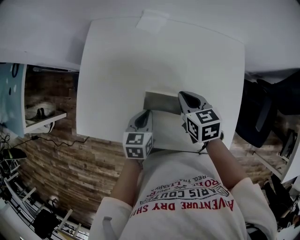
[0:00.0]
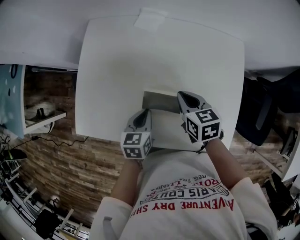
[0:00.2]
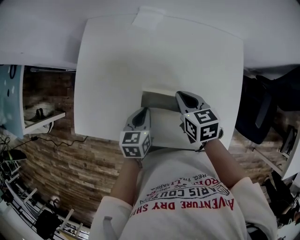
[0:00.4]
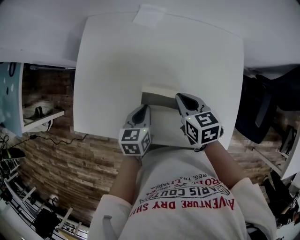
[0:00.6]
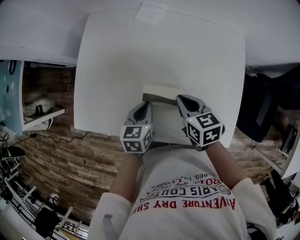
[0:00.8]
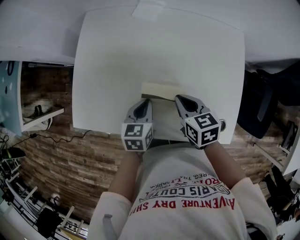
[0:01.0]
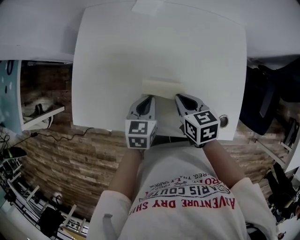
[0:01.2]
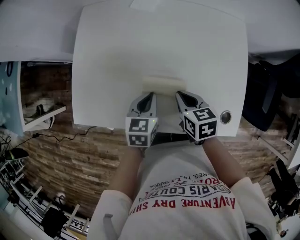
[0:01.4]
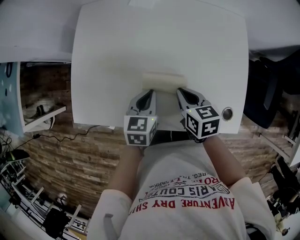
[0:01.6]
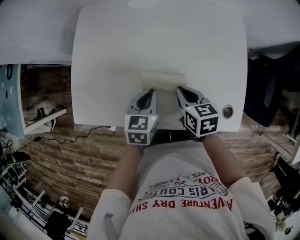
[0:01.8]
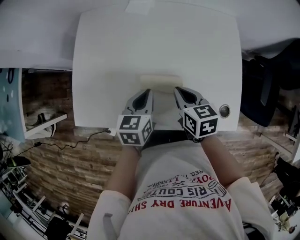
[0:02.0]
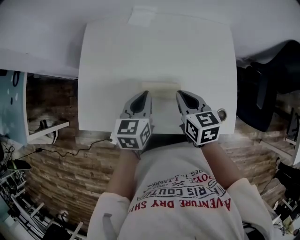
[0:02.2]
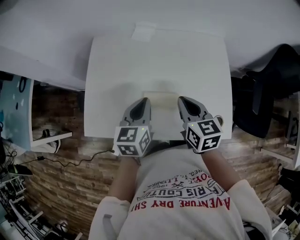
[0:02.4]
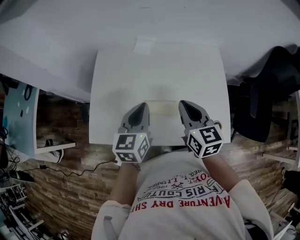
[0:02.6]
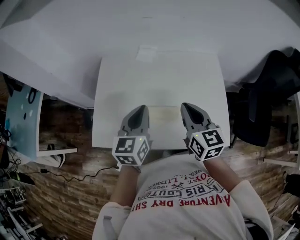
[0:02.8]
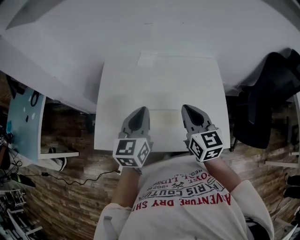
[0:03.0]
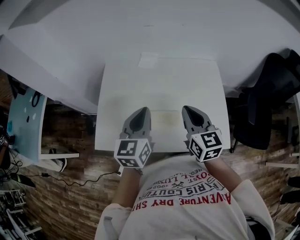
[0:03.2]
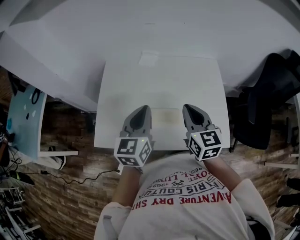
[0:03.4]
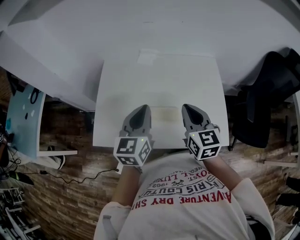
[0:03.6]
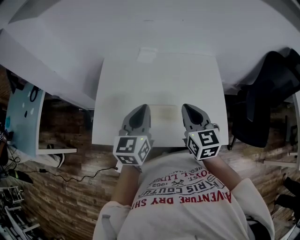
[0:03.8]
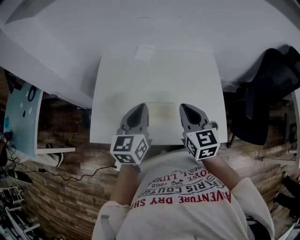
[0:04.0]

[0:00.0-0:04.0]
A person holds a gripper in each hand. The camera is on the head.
0.0 to 1.4 s: The right gripper heads backward, covering some 10 cm.
1.4 to 2.6 s: Both grippers move upward, about 20 cm. The right gripper rotates about 30 degrees; the left gripper changes its angle by approximately 20 degrees.
2.6 to 4.0 s: The left gripper moves roughly 5 cm.

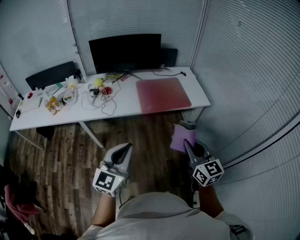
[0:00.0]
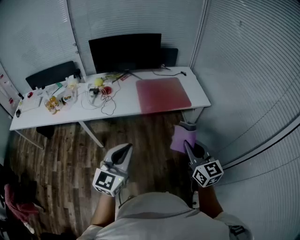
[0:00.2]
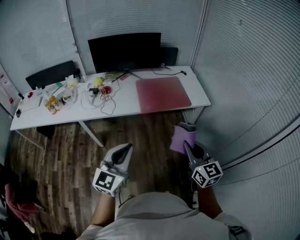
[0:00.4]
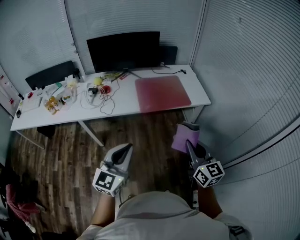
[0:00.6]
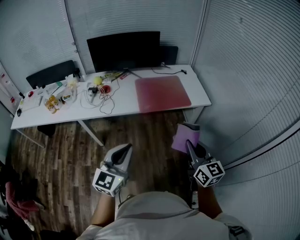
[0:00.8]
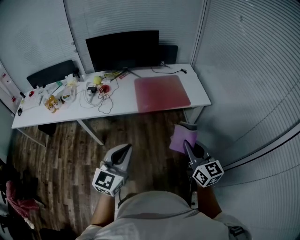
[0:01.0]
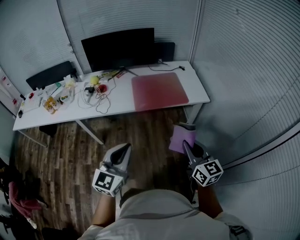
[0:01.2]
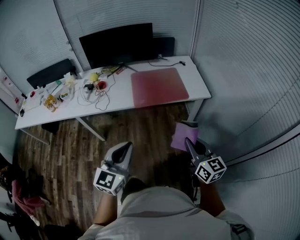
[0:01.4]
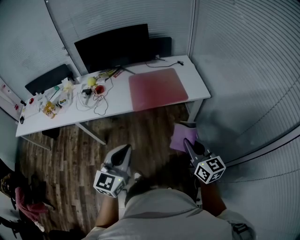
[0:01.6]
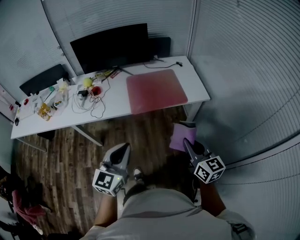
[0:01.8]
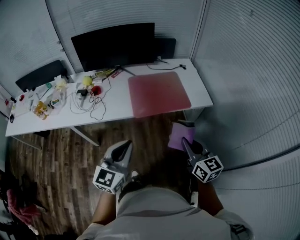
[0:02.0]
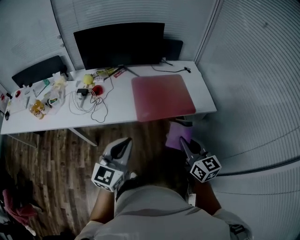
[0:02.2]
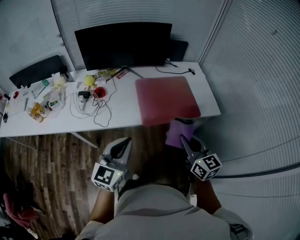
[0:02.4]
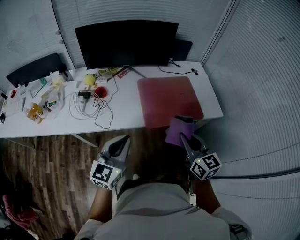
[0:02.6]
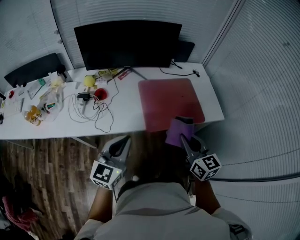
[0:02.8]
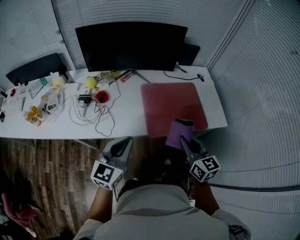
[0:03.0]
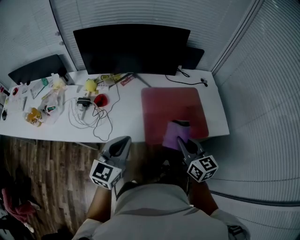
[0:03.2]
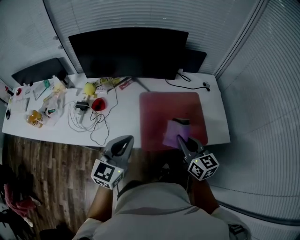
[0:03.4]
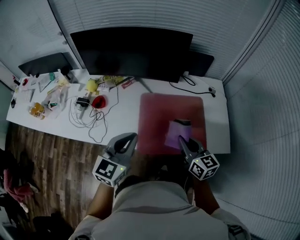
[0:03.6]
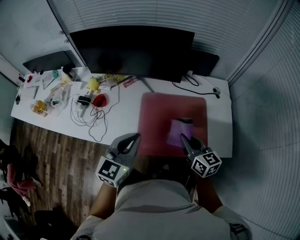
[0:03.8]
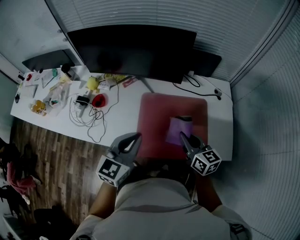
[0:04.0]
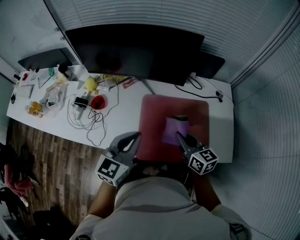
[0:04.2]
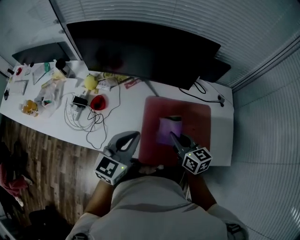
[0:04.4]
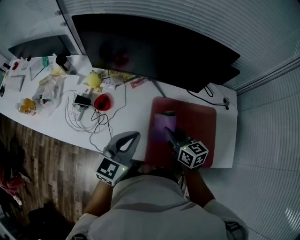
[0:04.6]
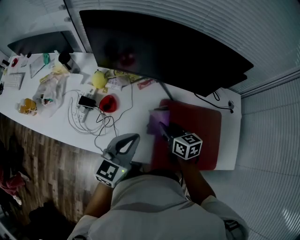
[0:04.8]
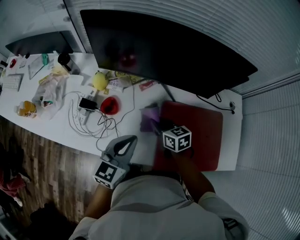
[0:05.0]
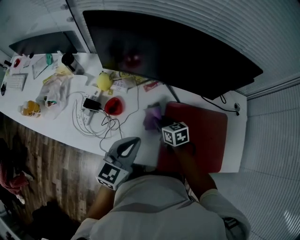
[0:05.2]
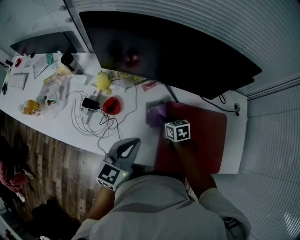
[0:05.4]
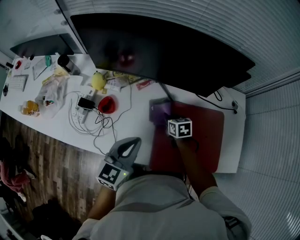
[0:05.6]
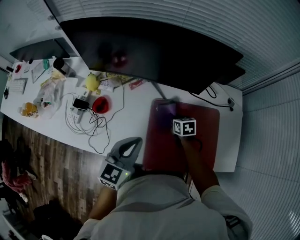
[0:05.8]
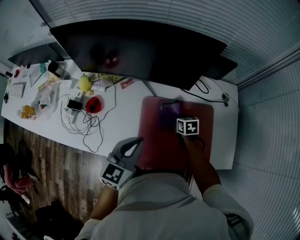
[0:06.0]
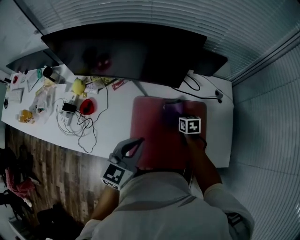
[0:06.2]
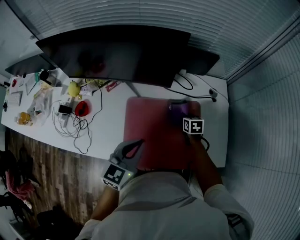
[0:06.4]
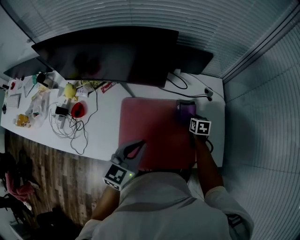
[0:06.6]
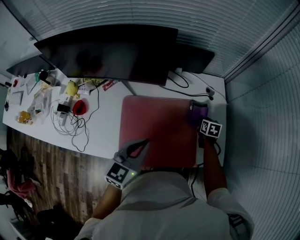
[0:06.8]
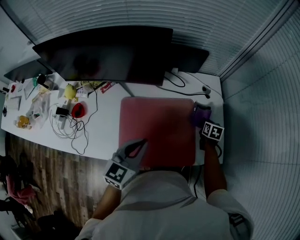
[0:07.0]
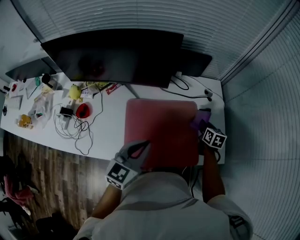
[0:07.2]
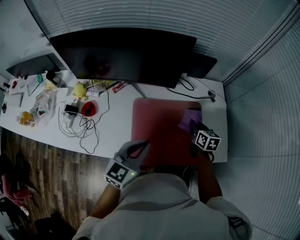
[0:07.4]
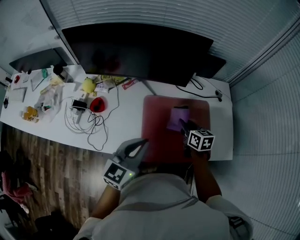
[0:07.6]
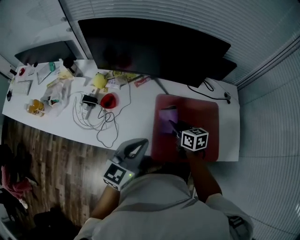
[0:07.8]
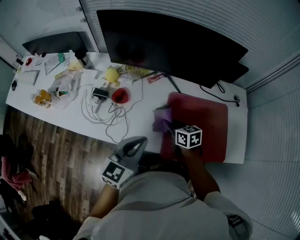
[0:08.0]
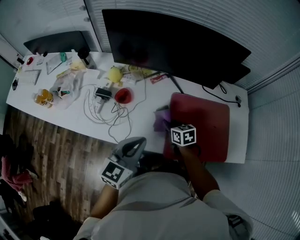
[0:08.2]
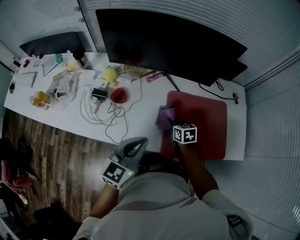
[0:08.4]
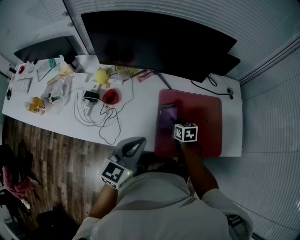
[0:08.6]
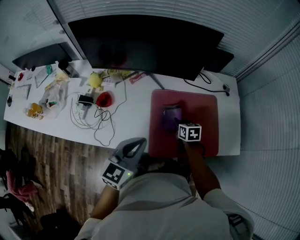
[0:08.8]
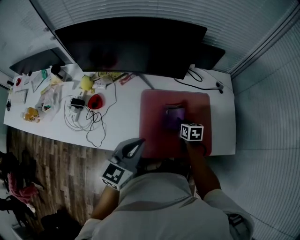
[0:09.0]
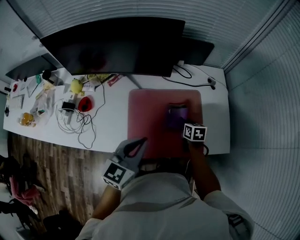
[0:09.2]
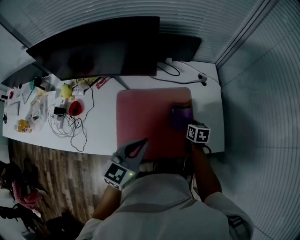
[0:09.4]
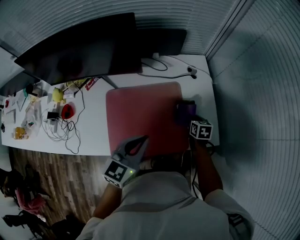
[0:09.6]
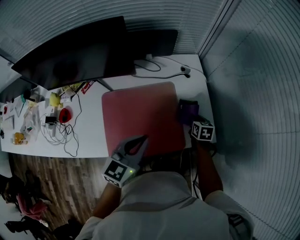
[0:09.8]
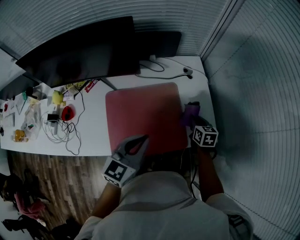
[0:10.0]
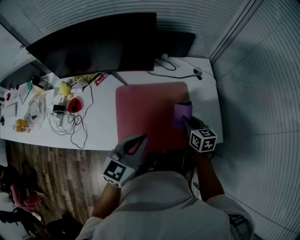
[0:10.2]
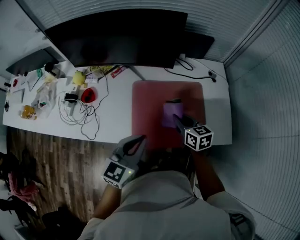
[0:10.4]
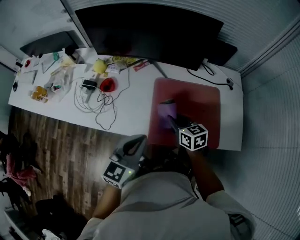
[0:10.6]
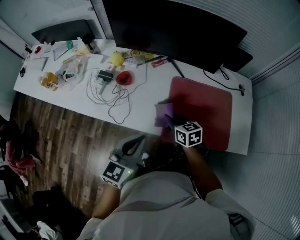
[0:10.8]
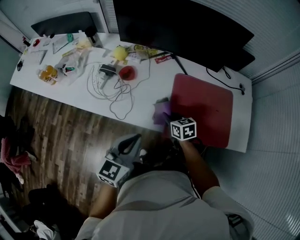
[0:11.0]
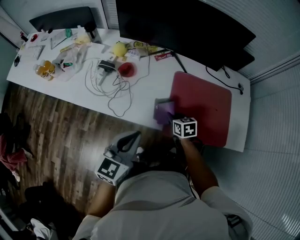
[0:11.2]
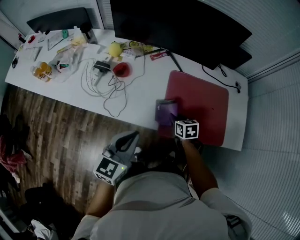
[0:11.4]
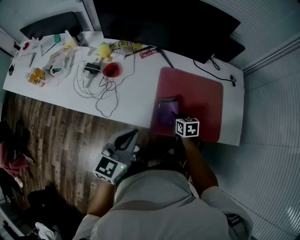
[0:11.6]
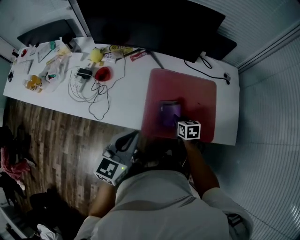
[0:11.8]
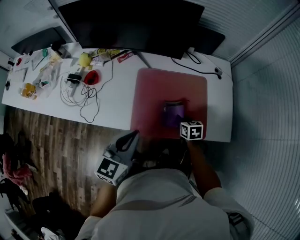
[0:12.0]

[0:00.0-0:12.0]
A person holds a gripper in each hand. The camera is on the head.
0.0 to 1.6 s: The right gripper shifts roughly 15 cm to the right, downward and forward. Meanwhile the left gripper goes roughly 10 cm to the right and forward.
1.6 to 3.0 s: The two grippers go approximately 35 cm forward and to the left.
3.0 to 4.4 s: The right gripper moves forward, approximately 25 cm, and changes its angle by some 20 degrees; the left gripper moves forward and to the right, approximately 25 cm.
4.4 to 6.0 s: The left gripper moves roughly 15 cm to the left and comes back; the right gripper goes roughly 25 cm downward and forward, reaches some 20 cm to the left, then returns, and swivels some 30 degrees.
6.0 to 7.6 s: The left gripper shifts some 5 cm backward, and travels to the right and back again, roughly 15 cm each way; the right gripper heads upward and backward, covering roughly 15 cm, and moves some 30 cm to the right and comes back.
7.6 to 9.0 s: The left gripper moves approximately 15 cm to the left and comes back. Meanwhile the right gripper heads downward, covering some 10 cm, and goes to the left and returns, about 25 cm each way.
9.0 to 10.4 s: The right gripper travels upward and backward by roughly 15 cm, and moves roughly 30 cm to the right and comes back. The left gripper moves approximately 20 cm to the right and comes back.
10.4 to 12.0 s: The right gripper shifts some 15 cm downward, and goes to the left and returns, some 25 cm each way. The left gripper travels to the left and back again, some 25 cm each way.

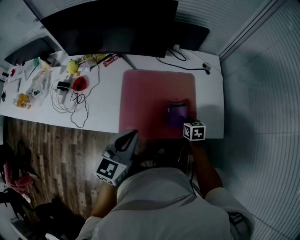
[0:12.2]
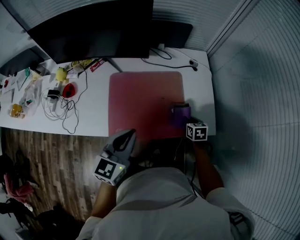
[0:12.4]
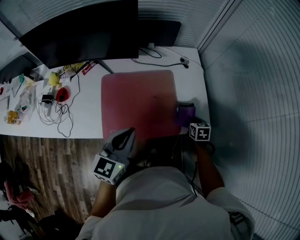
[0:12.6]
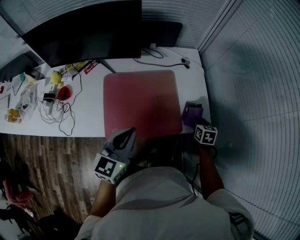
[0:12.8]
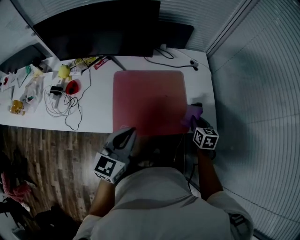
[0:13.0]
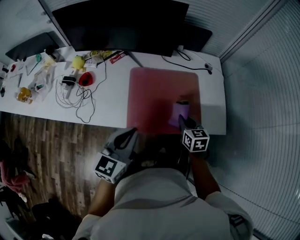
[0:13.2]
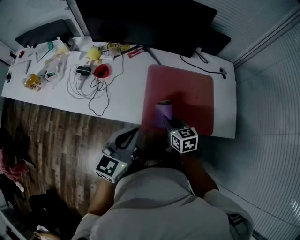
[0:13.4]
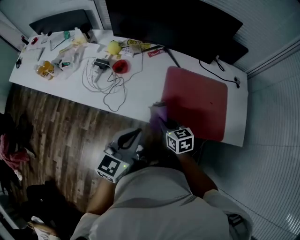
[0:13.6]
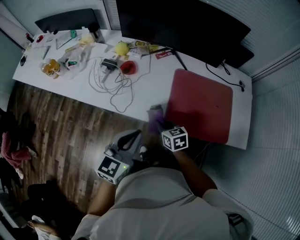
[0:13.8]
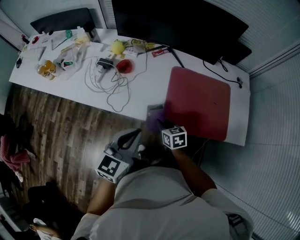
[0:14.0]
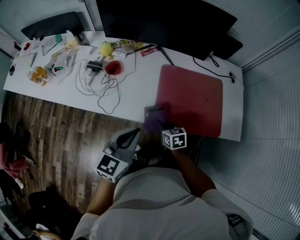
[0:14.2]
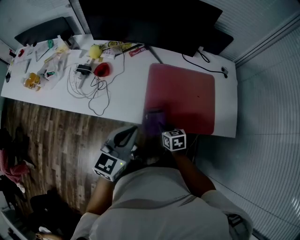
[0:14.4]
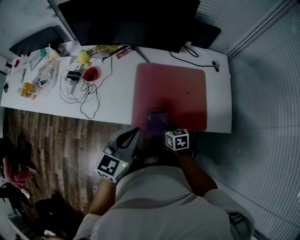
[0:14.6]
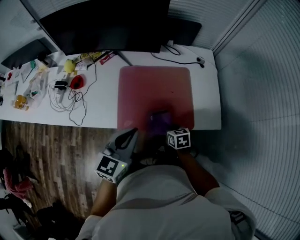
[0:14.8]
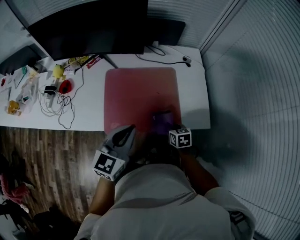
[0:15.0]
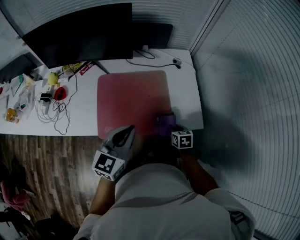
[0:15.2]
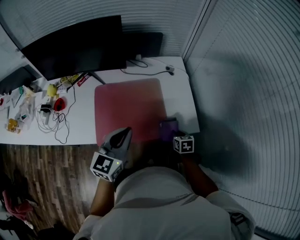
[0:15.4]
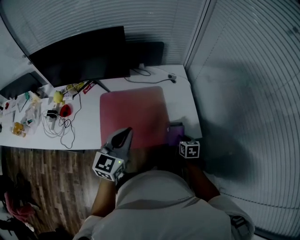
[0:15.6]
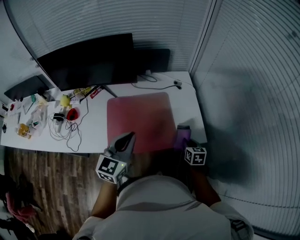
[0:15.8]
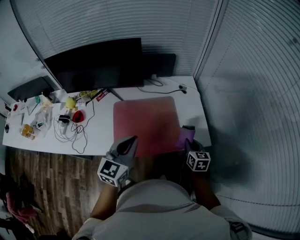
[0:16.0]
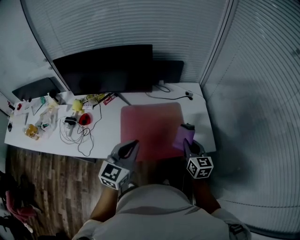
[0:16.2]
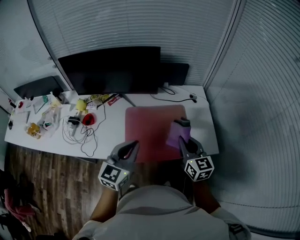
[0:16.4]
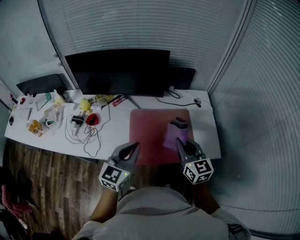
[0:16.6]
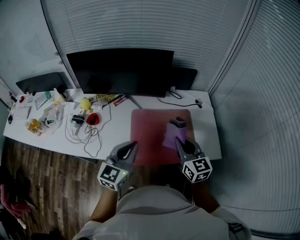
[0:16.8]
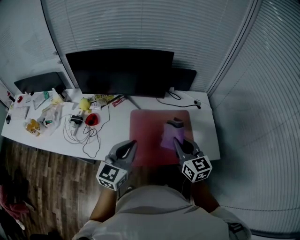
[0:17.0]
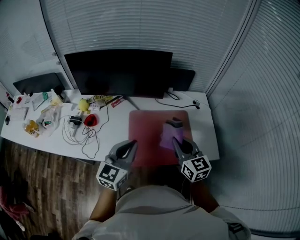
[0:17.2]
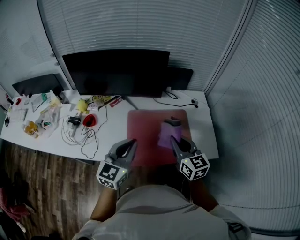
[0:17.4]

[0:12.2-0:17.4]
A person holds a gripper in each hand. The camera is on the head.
12.2 to 14.0 s: The left gripper changes place by about 25 cm, while the right gripper goes upward and returns, roughly 10 cm each way, and rotates approximately 20 degrees.
14.0 to 15.6 s: The right gripper changes place by roughly 50 cm, and swivels about 30 degrees. The left gripper moves roughly 35 cm.
15.6 to 17.4 s: The right gripper goes approximately 40 cm upward and to the left, and angles its fingers upward, by some 30 degrees. Meanwhile the left gripper shifts about 15 cm to the left.

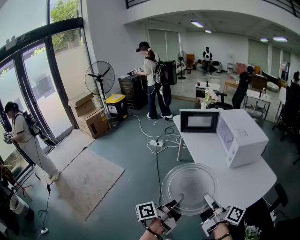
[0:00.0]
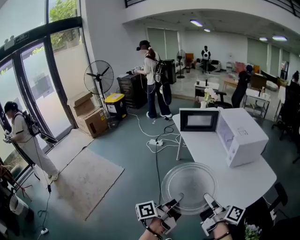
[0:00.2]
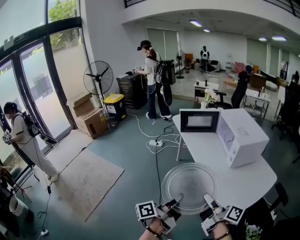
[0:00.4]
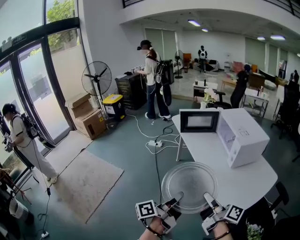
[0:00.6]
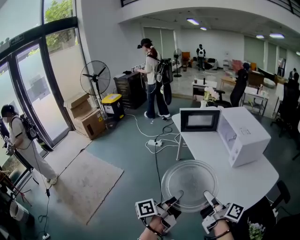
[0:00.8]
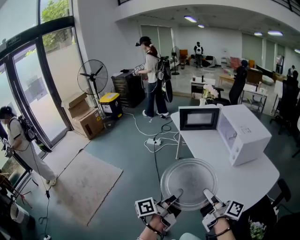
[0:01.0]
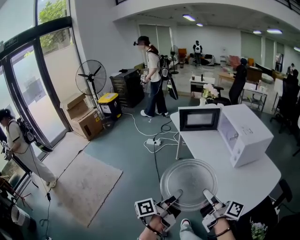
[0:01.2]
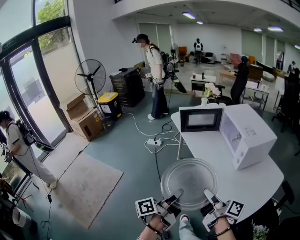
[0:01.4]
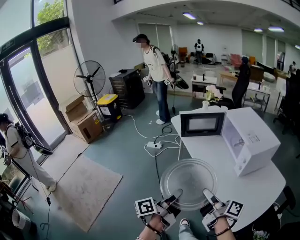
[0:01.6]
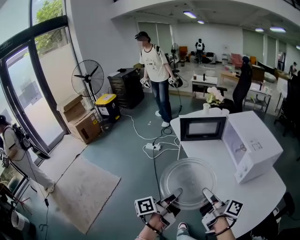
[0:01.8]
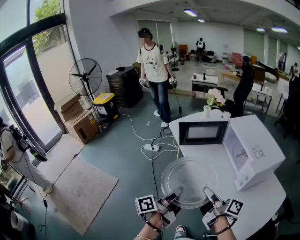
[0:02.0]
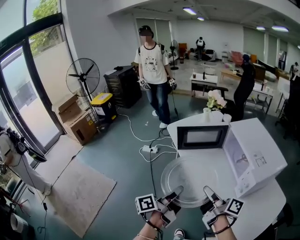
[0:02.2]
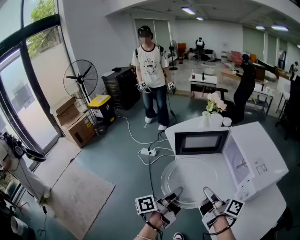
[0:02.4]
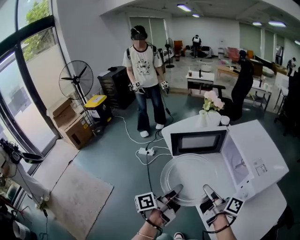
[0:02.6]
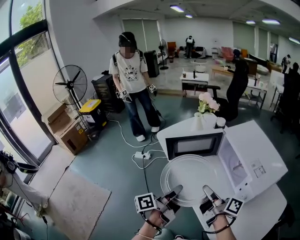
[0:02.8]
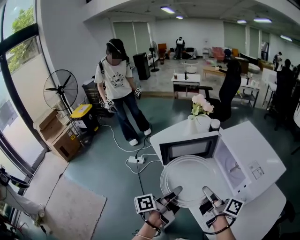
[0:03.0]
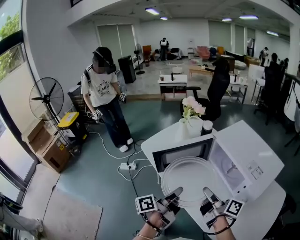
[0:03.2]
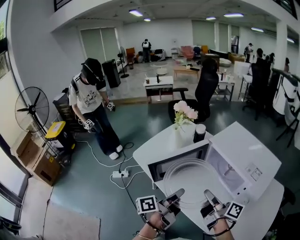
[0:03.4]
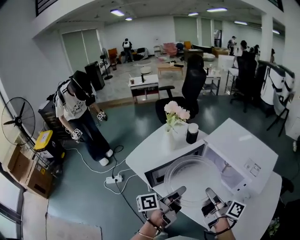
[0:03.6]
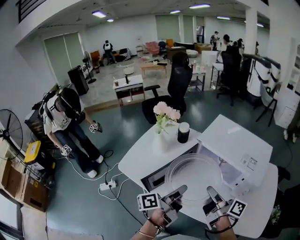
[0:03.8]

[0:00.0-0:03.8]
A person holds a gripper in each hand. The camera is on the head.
0.0 to 1.2 s: The right gripper shifts by some 10 cm.
1.2 to 2.6 s: The right gripper changes place by roughly 35 cm.
2.6 to 3.8 s: The right gripper changes place by approximately 10 cm, and swivels roughly 40 degrees.
